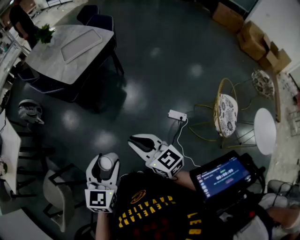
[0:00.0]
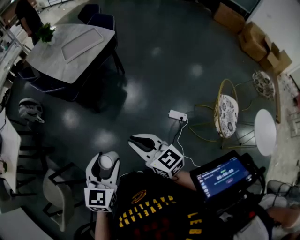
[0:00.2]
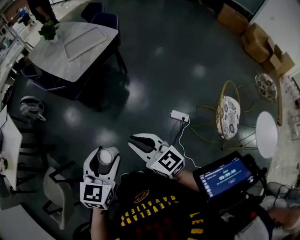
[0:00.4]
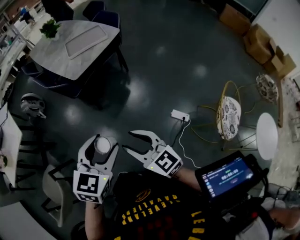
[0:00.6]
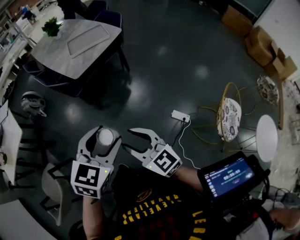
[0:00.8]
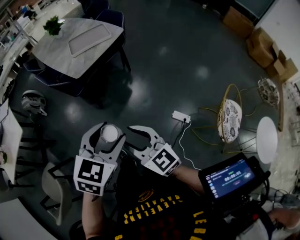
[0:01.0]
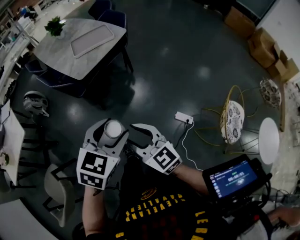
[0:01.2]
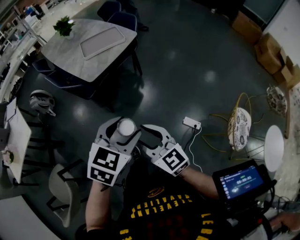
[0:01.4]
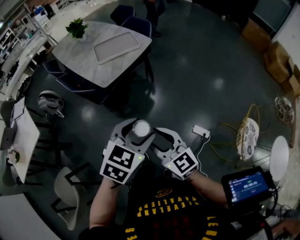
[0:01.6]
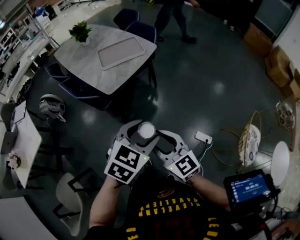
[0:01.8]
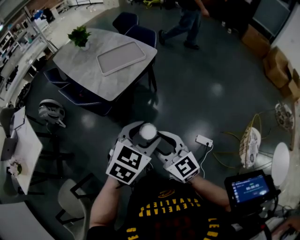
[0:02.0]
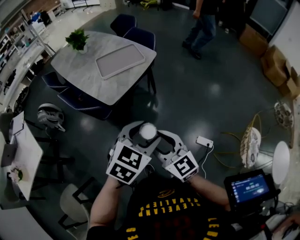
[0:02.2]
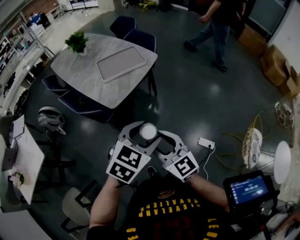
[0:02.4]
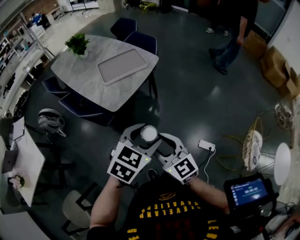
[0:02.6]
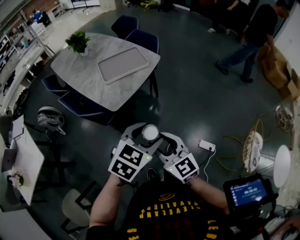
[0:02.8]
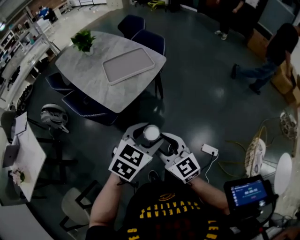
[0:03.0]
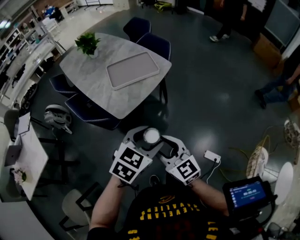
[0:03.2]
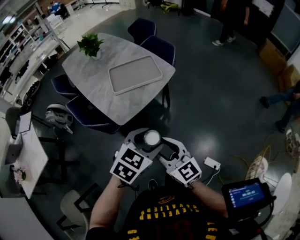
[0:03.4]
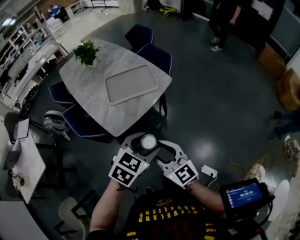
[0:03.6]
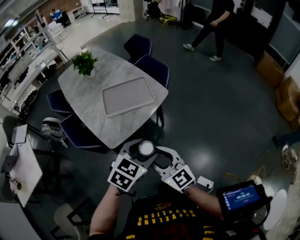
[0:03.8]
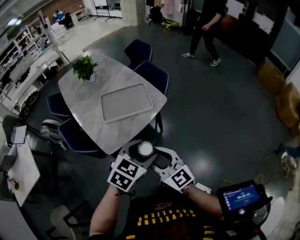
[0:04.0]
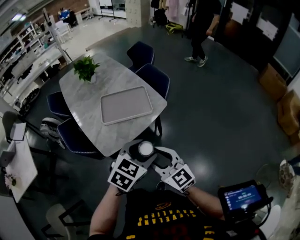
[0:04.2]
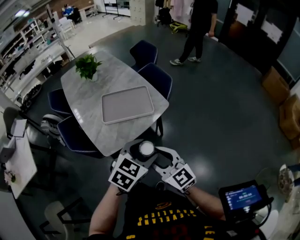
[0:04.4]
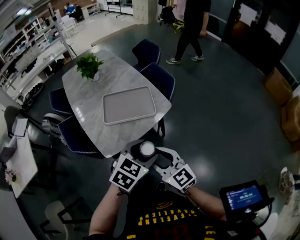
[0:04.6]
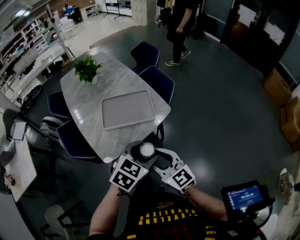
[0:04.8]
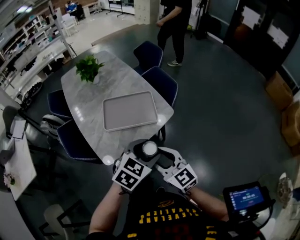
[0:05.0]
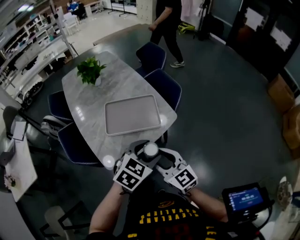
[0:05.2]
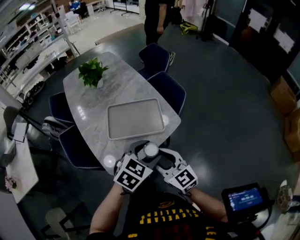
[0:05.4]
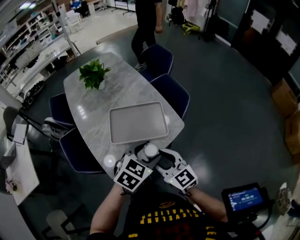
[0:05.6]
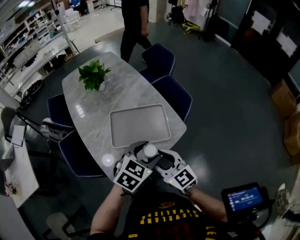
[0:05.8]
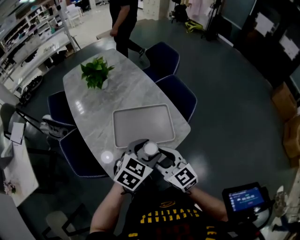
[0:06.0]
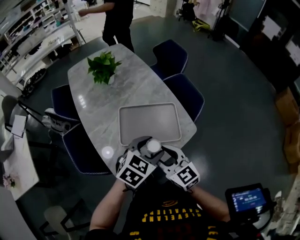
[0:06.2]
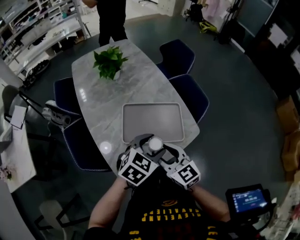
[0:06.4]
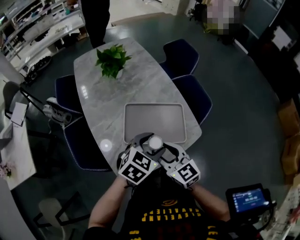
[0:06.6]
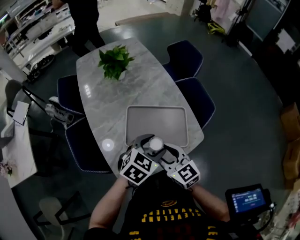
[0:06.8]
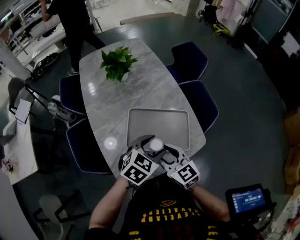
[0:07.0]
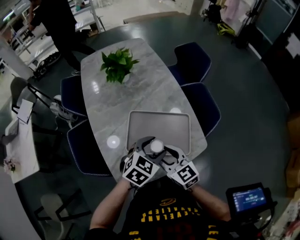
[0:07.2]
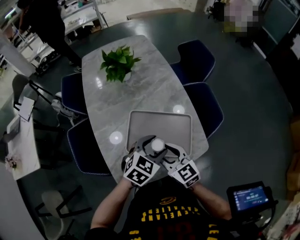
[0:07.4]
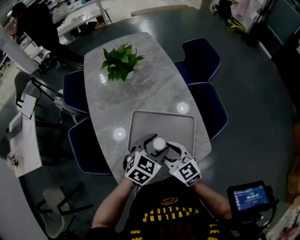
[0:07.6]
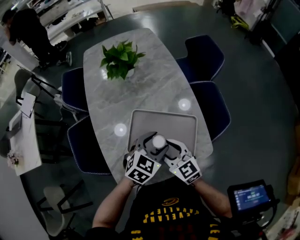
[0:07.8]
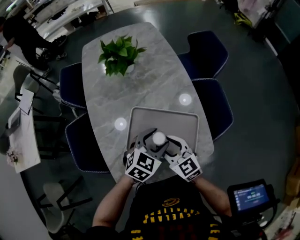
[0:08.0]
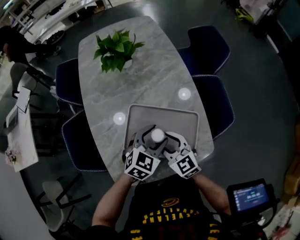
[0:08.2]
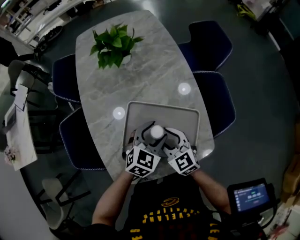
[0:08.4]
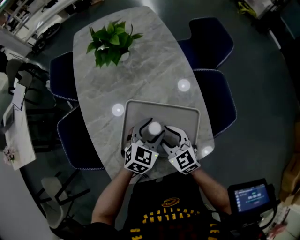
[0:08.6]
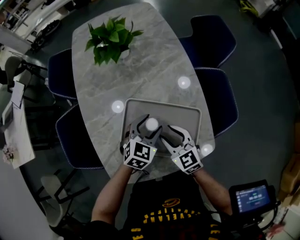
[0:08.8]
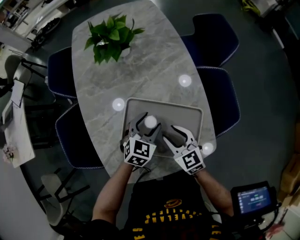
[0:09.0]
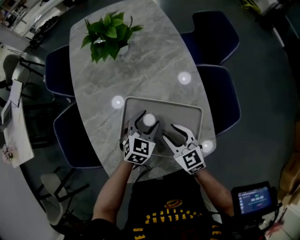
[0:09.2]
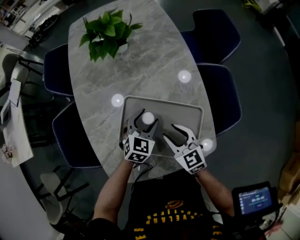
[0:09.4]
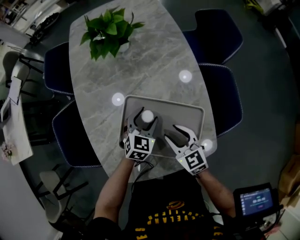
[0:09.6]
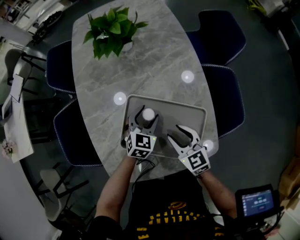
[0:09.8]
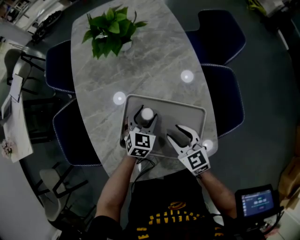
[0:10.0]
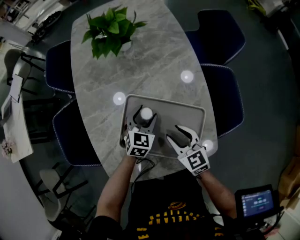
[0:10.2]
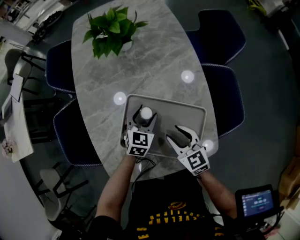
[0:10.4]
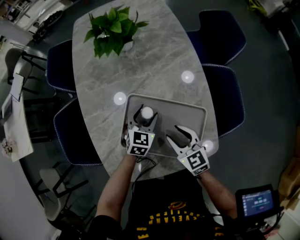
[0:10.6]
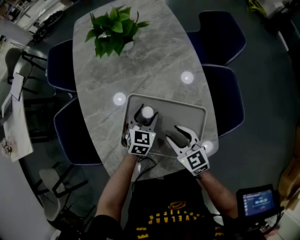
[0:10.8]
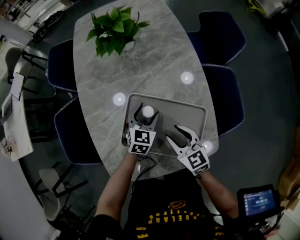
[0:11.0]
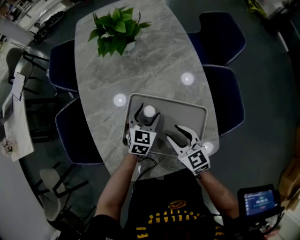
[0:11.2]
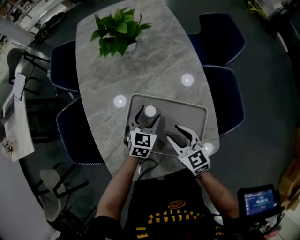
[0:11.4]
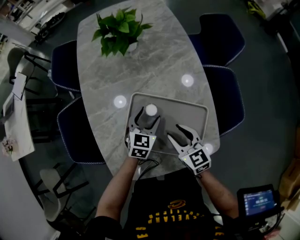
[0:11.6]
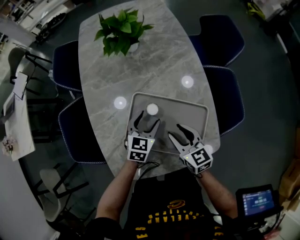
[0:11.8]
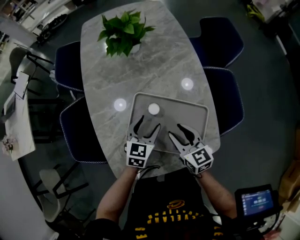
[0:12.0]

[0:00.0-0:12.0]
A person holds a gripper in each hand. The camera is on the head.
0.0 to 1.6 s: The left gripper heads forward, covering approximately 20 cm, and turns by approximately 20 degrees; the right gripper goes some 15 cm forward and to the left, and opens.
1.6 to 3.0 s: Both grippers travel together forward and to the left, roughly 20 cm.
3.0 to 4.4 s: The two grippers go about 25 cm forward.
4.4 to 6.0 s: The two grippers go about 25 cm forward.
6.0 to 7.6 s: Both grippers travel together forward and downward, roughly 15 cm.
7.6 to 9.0 s: The grippers both shift downward and forward by some 15 cm.
9.0 to 10.4 s: The left gripper goes approximately 5 cm downward.
10.4 to 12.0 s: The left gripper shifts roughly 10 cm backward and upward.

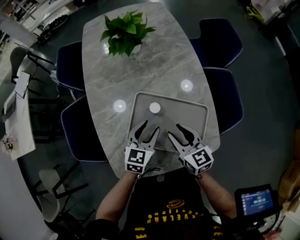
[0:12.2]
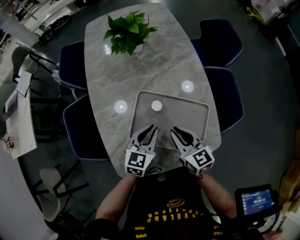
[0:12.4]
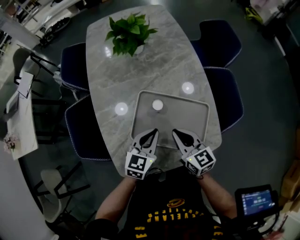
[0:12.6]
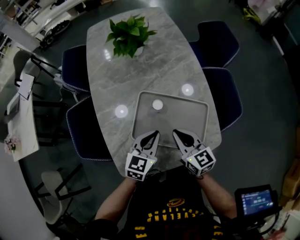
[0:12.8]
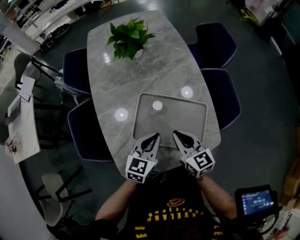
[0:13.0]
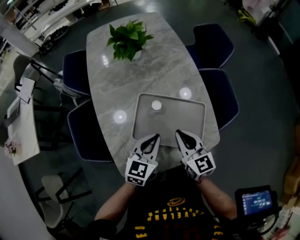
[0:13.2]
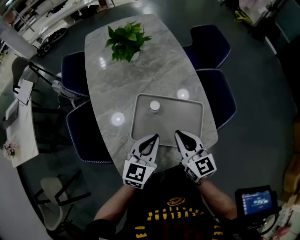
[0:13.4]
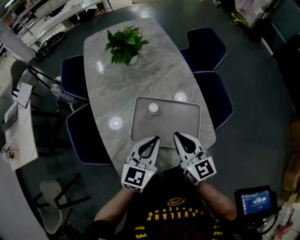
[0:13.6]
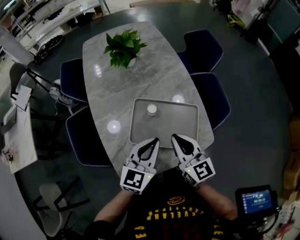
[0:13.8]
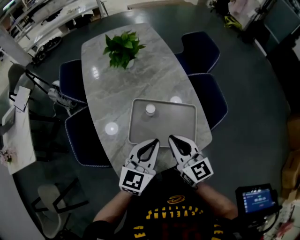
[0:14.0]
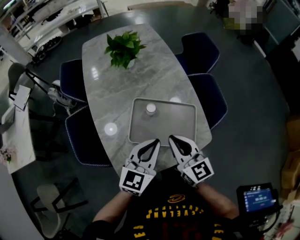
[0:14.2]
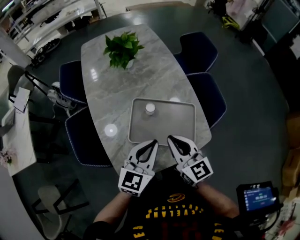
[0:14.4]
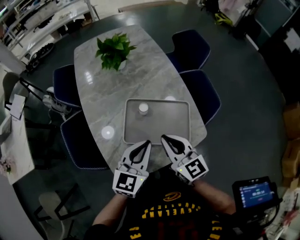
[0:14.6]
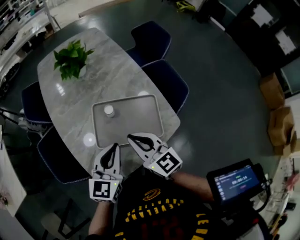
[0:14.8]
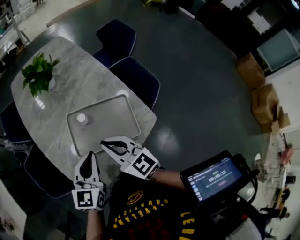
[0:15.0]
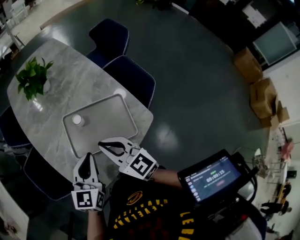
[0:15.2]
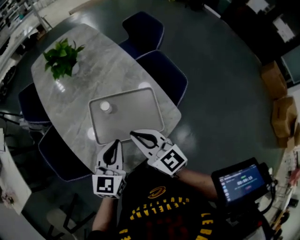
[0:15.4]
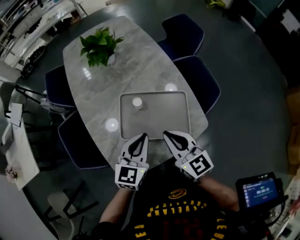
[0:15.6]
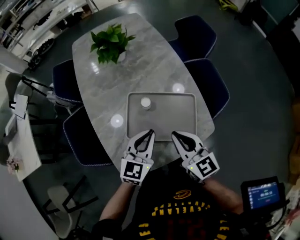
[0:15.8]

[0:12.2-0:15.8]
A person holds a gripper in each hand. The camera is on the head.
12.2 to 14.0 s: Both grippers move upward and backward, about 15 cm. The right gripper closes. The left gripper closes.
14.0 to 15.8 s: The grippers make only small movements.

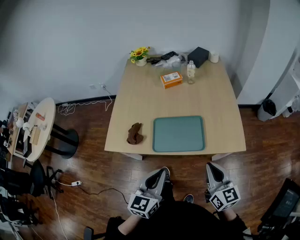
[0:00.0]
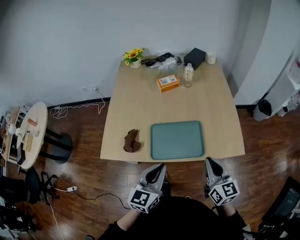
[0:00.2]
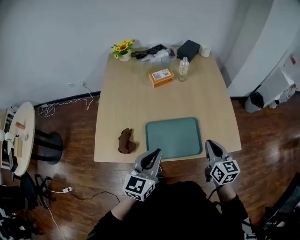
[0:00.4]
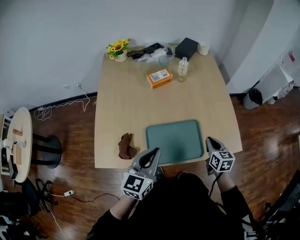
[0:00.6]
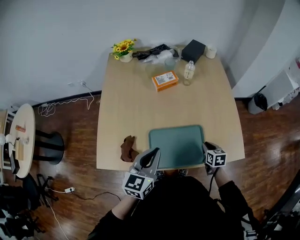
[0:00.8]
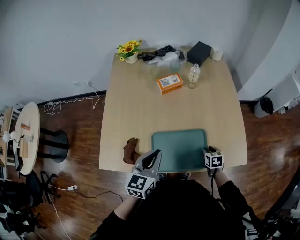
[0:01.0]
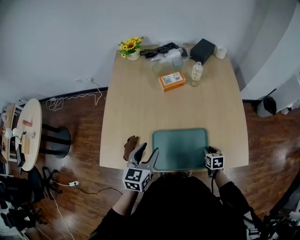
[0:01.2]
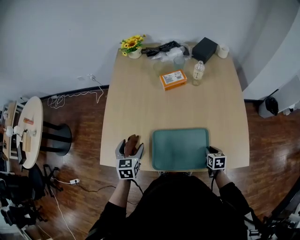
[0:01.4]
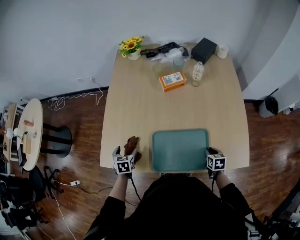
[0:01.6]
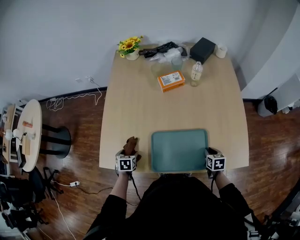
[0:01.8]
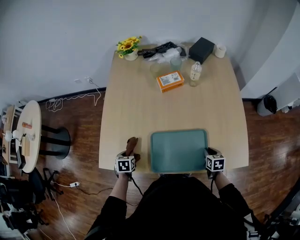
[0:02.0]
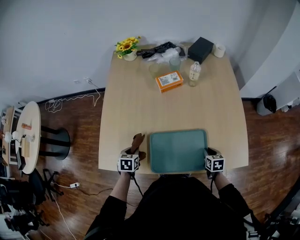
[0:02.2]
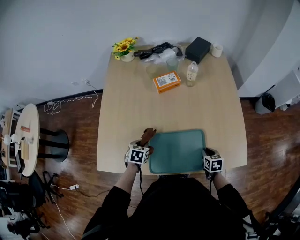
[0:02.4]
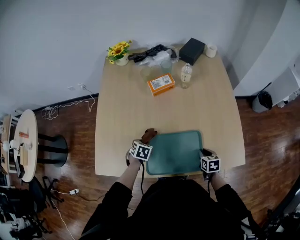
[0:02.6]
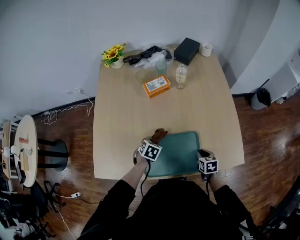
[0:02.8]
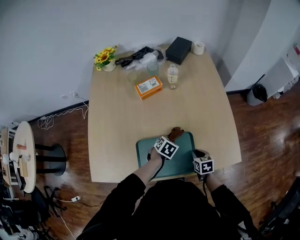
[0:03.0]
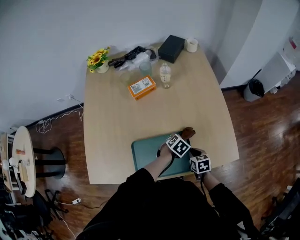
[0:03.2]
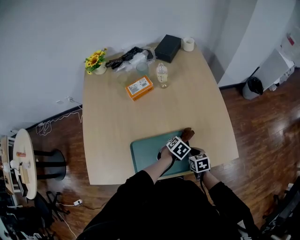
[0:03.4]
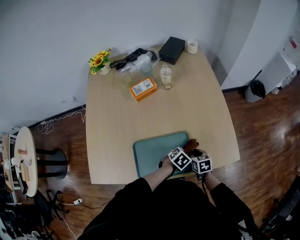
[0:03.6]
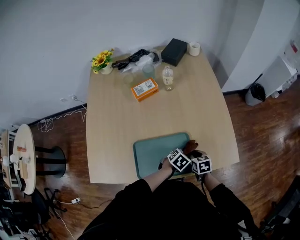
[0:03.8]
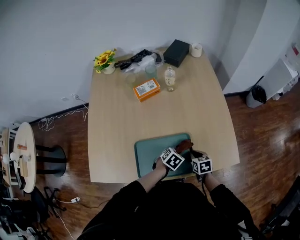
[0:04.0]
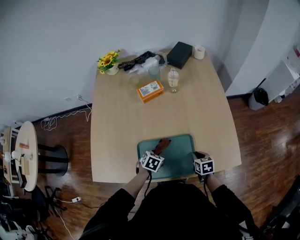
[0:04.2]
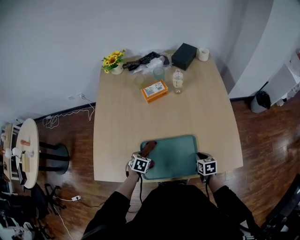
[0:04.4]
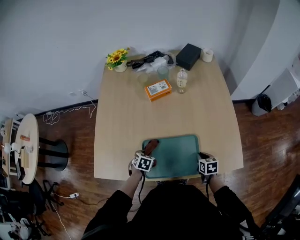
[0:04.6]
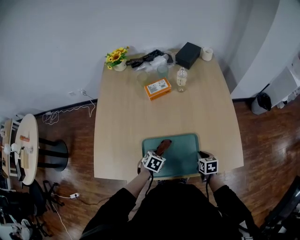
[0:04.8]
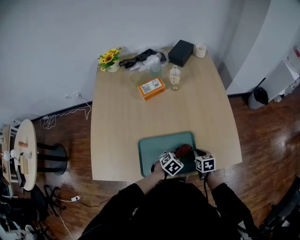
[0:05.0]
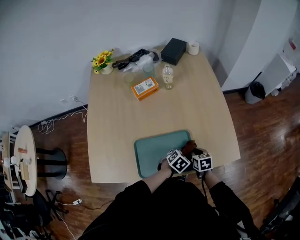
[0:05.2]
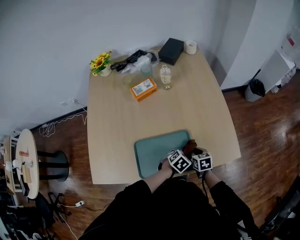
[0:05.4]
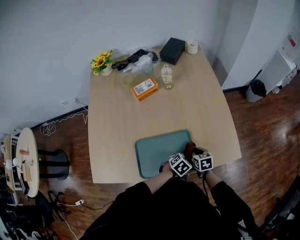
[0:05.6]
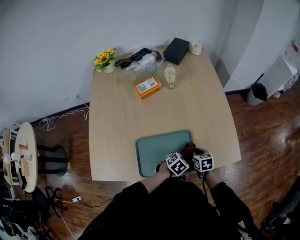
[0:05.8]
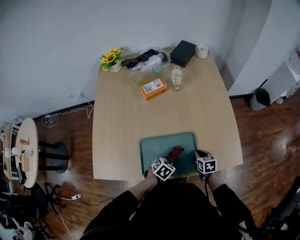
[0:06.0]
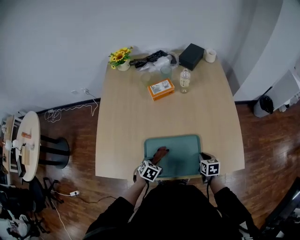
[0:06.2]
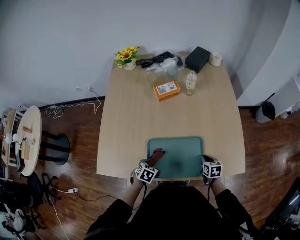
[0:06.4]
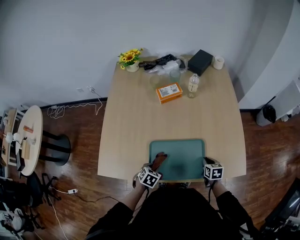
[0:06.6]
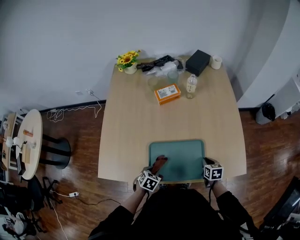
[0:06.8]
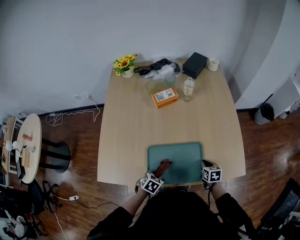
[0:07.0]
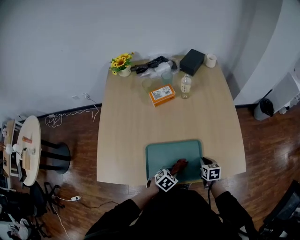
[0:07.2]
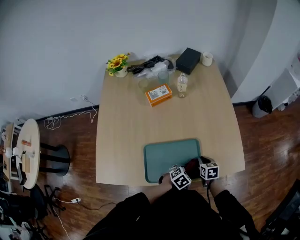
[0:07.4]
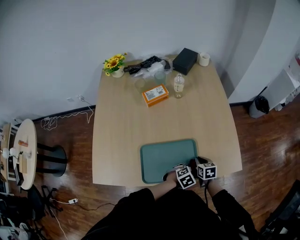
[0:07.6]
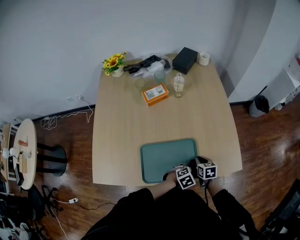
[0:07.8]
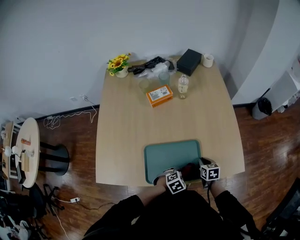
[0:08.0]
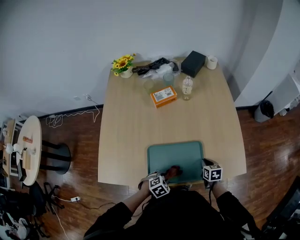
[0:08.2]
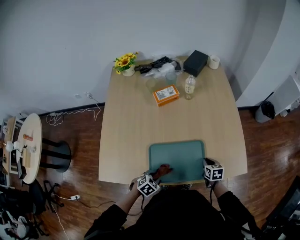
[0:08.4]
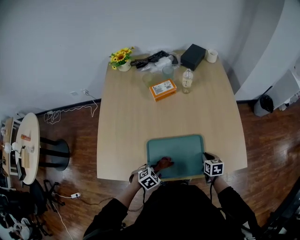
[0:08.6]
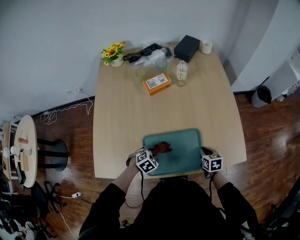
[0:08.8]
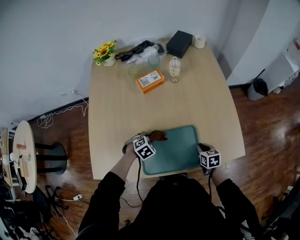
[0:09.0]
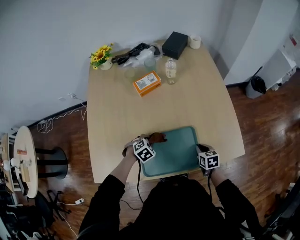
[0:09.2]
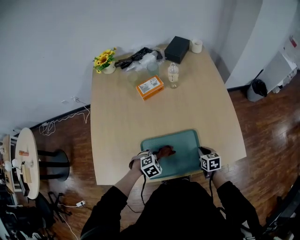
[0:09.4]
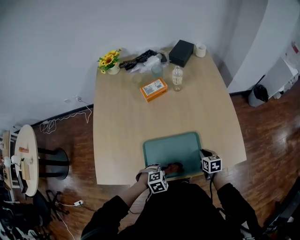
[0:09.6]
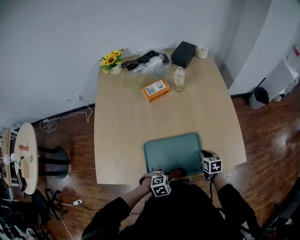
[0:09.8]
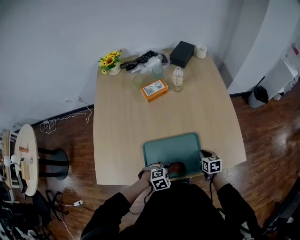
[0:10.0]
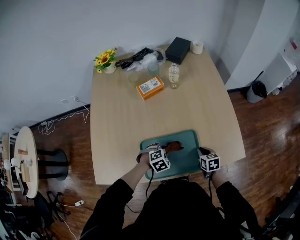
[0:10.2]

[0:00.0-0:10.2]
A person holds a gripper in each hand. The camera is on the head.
0.0 to 1.4 s: The left gripper travels forward, to the left and downward by approximately 35 cm, rotates some 30 degrees, and opens its fingers. The right gripper goes about 40 cm downward and forward, and tilts its fingers some 50 degrees downward.
1.4 to 3.0 s: The left gripper ends up approximately 35 cm from where it was, changes its angle by about 50 degrees, and closes up.
3.0 to 4.4 s: The left gripper shifts by roughly 20 cm.
4.4 to 5.8 s: The left gripper changes place by some 25 cm, and swivels roughly 40 degrees.
5.8 to 7.2 s: The left gripper goes approximately 10 cm to the left and backward.
7.2 to 8.8 s: The left gripper is displaced to the left by roughly 10 cm.
8.8 to 10.2 s: The left gripper goes forward and backward, about 15 cm each way, reversing 2 times.
